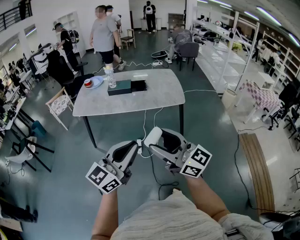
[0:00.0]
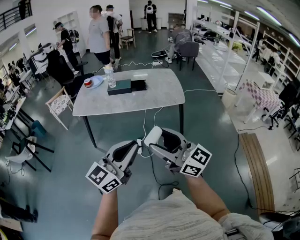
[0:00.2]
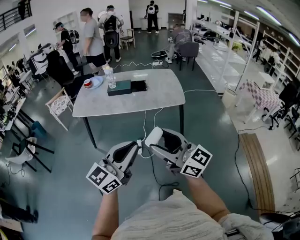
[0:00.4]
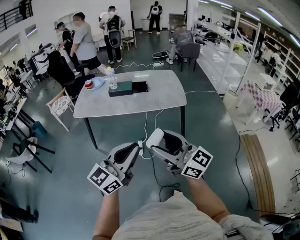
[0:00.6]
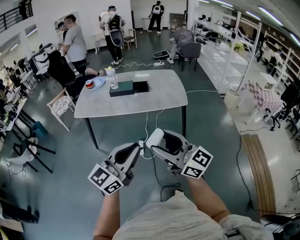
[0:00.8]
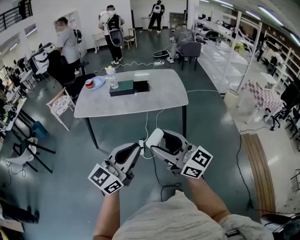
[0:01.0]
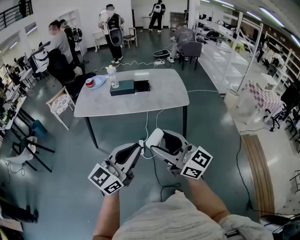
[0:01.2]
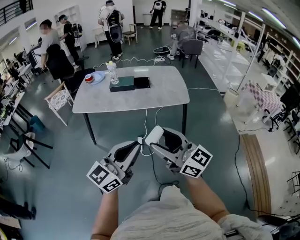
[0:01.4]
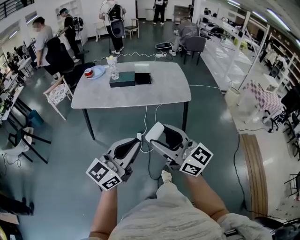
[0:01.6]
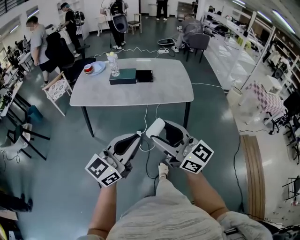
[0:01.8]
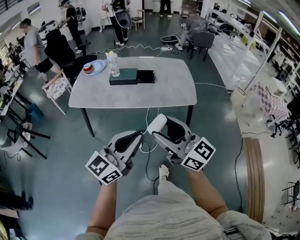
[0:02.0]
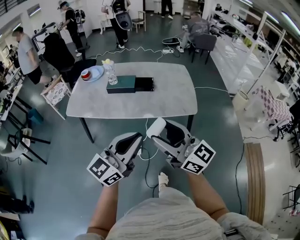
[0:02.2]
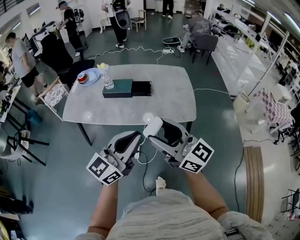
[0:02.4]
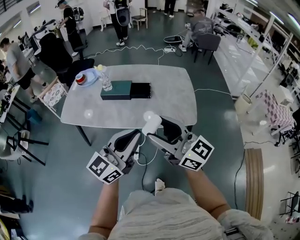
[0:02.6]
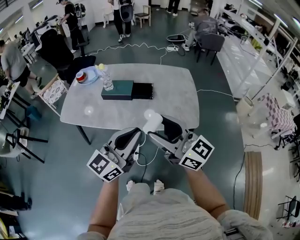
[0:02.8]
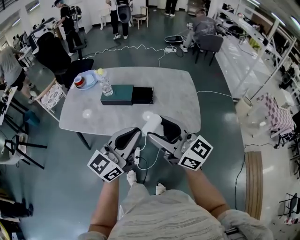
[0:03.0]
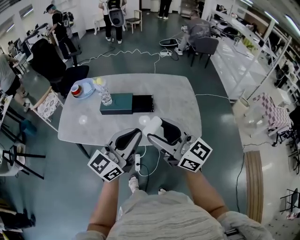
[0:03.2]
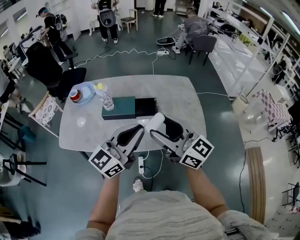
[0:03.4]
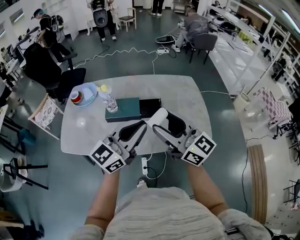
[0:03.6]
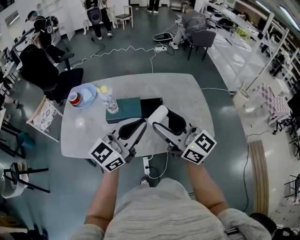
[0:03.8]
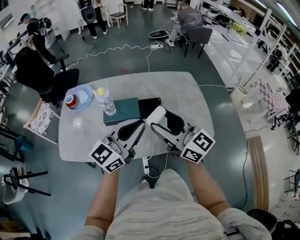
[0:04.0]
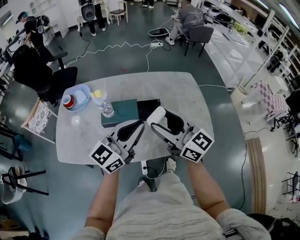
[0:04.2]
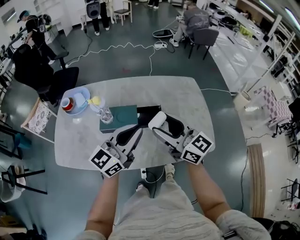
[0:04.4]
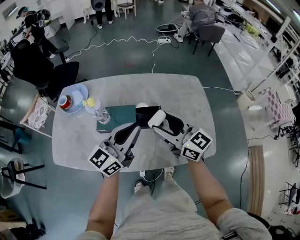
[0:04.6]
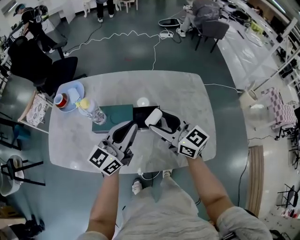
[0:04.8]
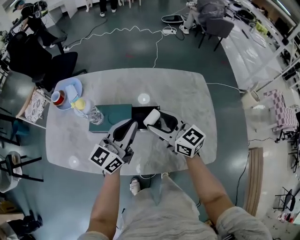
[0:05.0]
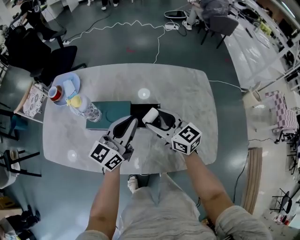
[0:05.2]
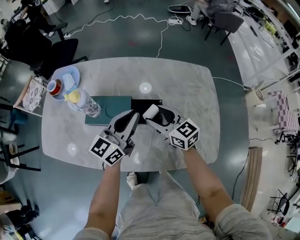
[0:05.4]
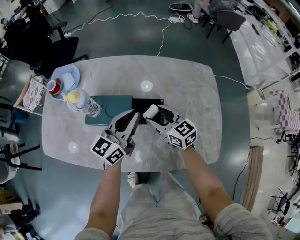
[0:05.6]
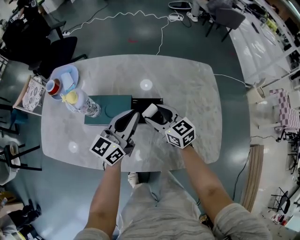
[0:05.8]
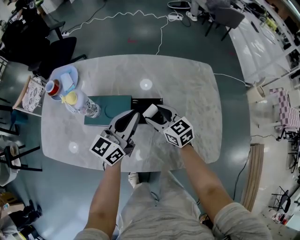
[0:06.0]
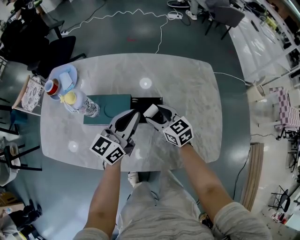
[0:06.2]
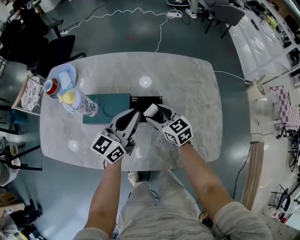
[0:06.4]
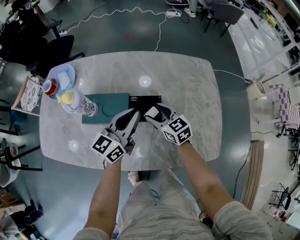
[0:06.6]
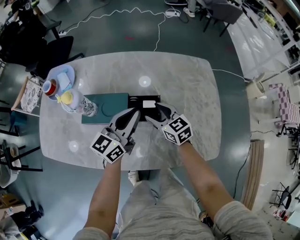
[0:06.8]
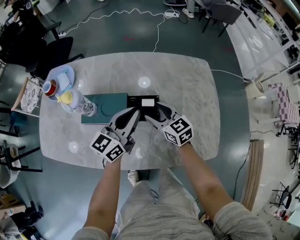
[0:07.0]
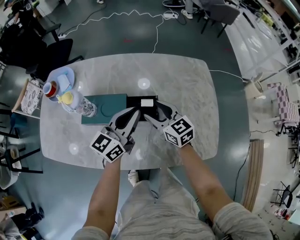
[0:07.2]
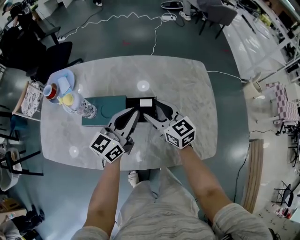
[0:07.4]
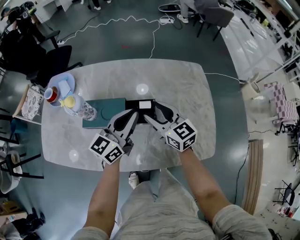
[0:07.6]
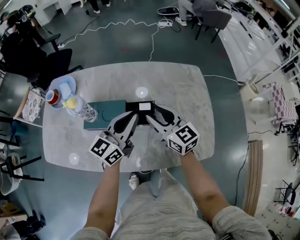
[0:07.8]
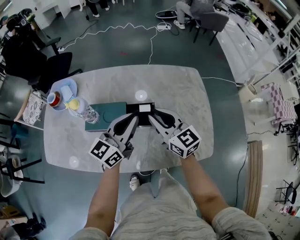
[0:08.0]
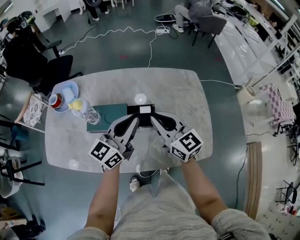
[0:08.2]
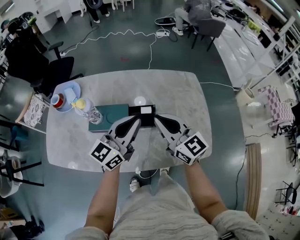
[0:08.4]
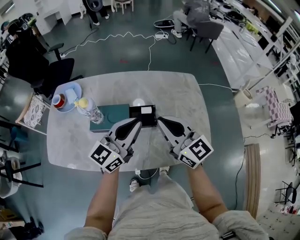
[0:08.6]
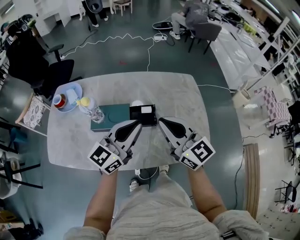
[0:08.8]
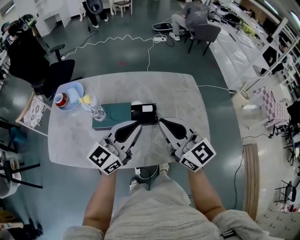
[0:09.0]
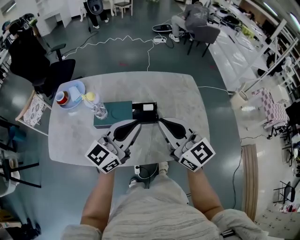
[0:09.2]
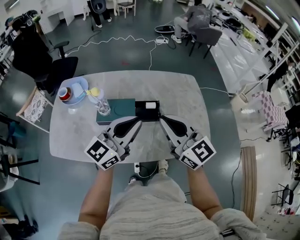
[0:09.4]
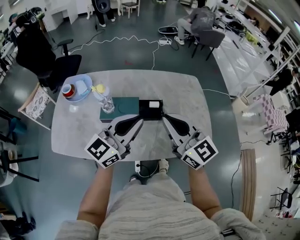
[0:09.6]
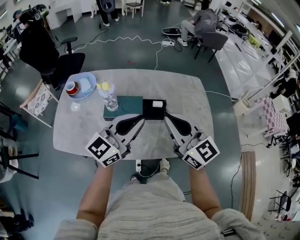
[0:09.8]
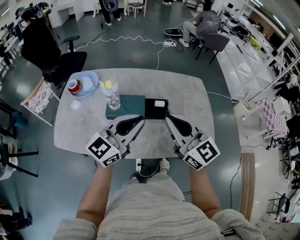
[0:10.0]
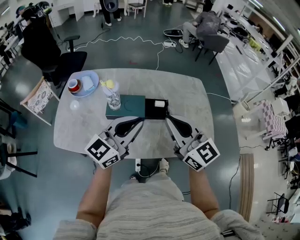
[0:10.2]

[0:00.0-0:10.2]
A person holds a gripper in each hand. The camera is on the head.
0:00.0 to 0:01.4: There are only small adjustments of the grippers.
0:01.4 to 0:03.0: Both grippers move forward, about 40 cm.
0:03.0 to 0:04.4: The grippers both shift forward by roughly 25 cm.
0:04.4 to 0:05.8: The right gripper moves downward and forward, about 30 cm, and rotates roughly 30 degrees. Meanwhile the left gripper is displaced forward and downward by roughly 20 cm.
0:05.8 to 0:07.2: The grippers make only small movements.
0:07.2 to 0:08.8: The right gripper shifts some 25 cm upward and backward, changes its angle by approximately 20 degrees, and closes up; the left gripper heads upward and backward, covering about 15 cm.
0:08.8 to 0:10.2: The right gripper moves backward and to the left, some 10 cm, while the left gripper moves to the left and backward, some 10 cm.

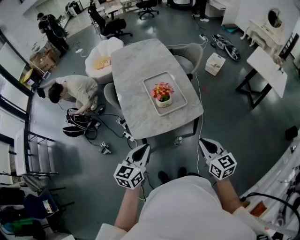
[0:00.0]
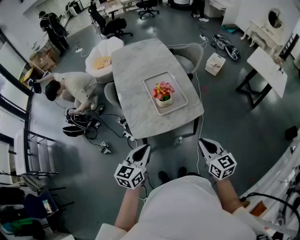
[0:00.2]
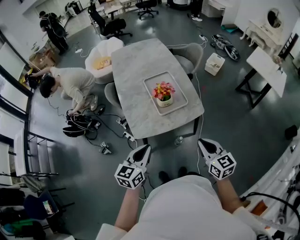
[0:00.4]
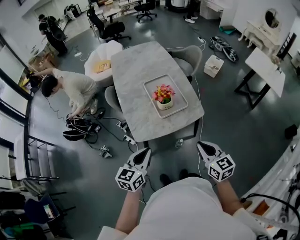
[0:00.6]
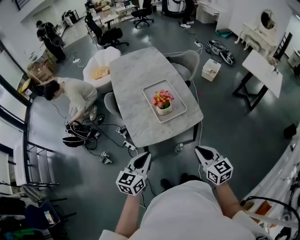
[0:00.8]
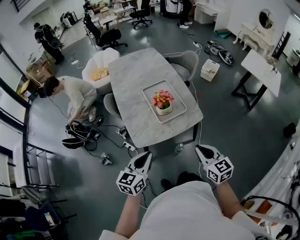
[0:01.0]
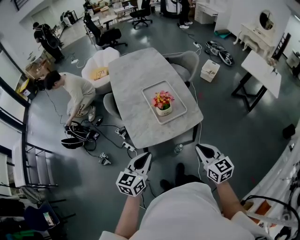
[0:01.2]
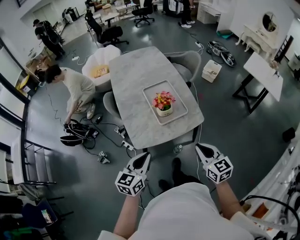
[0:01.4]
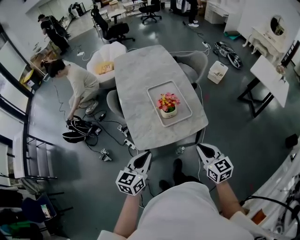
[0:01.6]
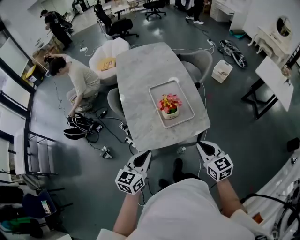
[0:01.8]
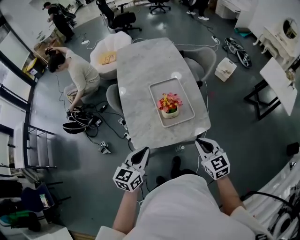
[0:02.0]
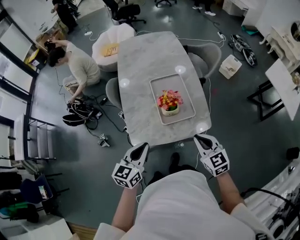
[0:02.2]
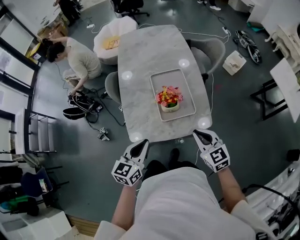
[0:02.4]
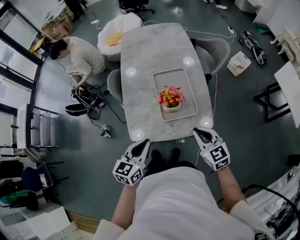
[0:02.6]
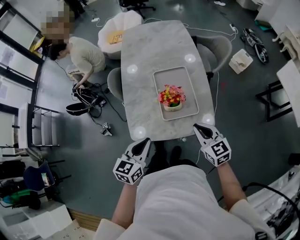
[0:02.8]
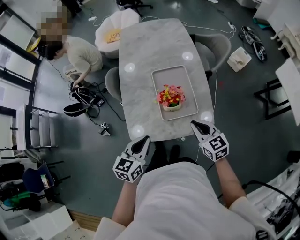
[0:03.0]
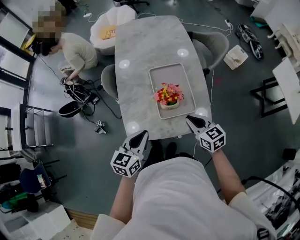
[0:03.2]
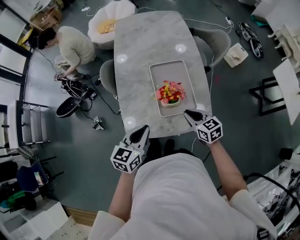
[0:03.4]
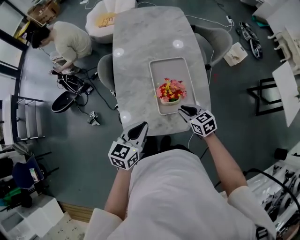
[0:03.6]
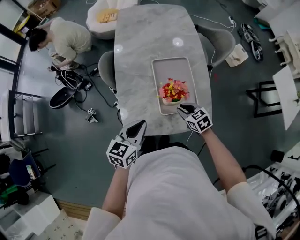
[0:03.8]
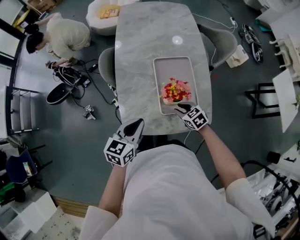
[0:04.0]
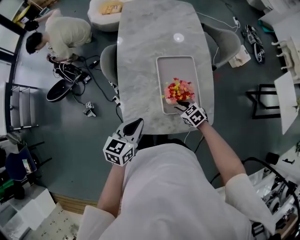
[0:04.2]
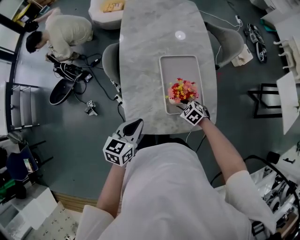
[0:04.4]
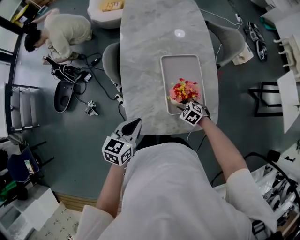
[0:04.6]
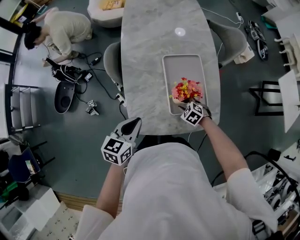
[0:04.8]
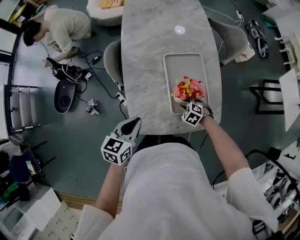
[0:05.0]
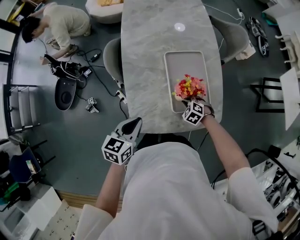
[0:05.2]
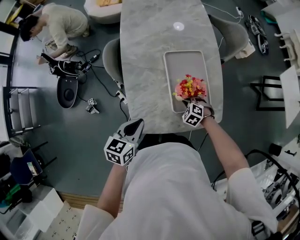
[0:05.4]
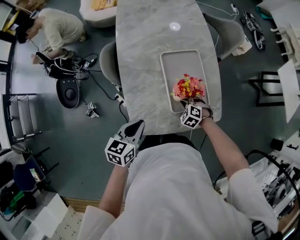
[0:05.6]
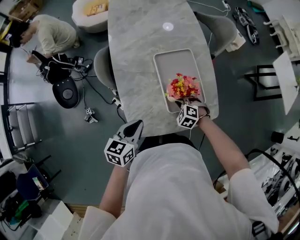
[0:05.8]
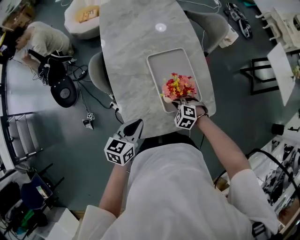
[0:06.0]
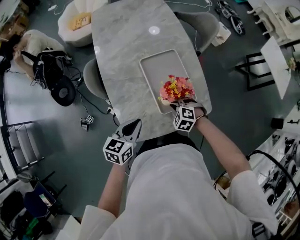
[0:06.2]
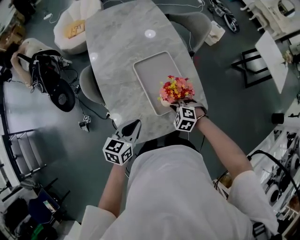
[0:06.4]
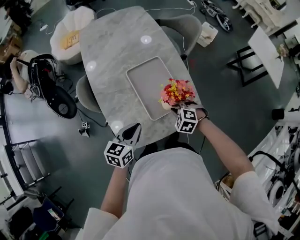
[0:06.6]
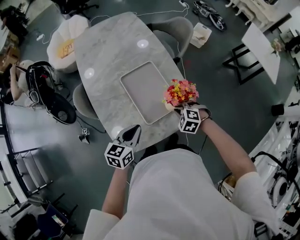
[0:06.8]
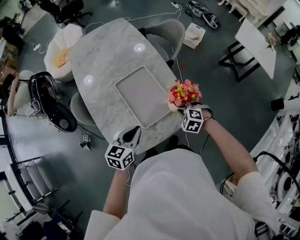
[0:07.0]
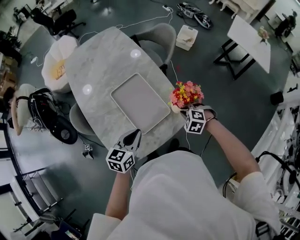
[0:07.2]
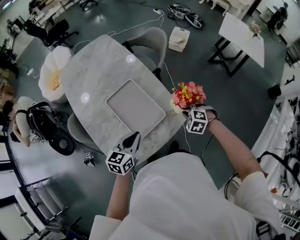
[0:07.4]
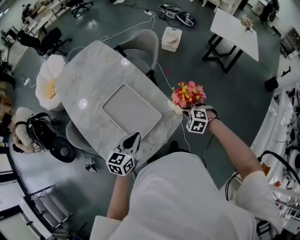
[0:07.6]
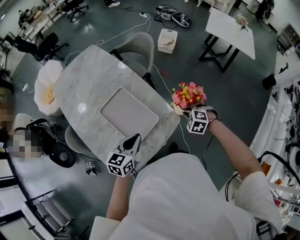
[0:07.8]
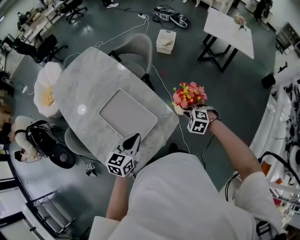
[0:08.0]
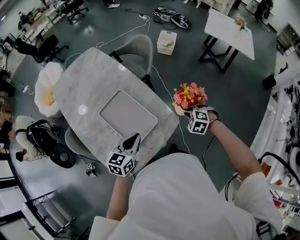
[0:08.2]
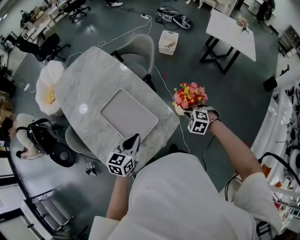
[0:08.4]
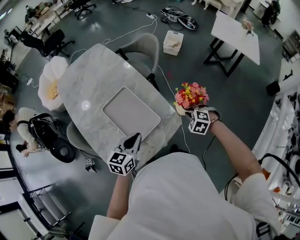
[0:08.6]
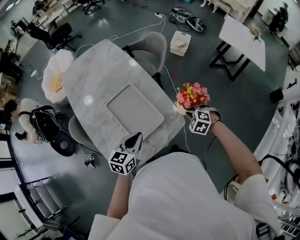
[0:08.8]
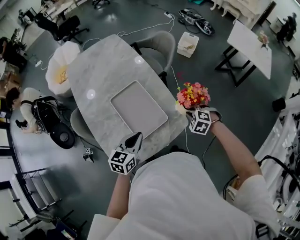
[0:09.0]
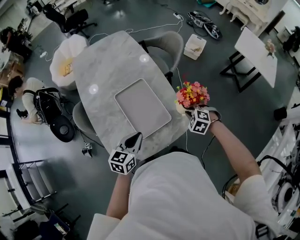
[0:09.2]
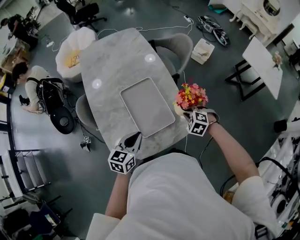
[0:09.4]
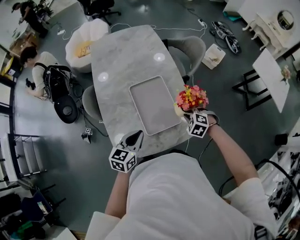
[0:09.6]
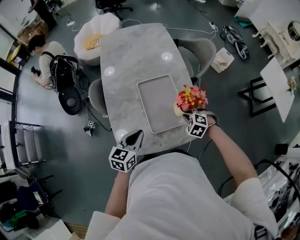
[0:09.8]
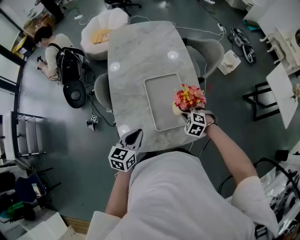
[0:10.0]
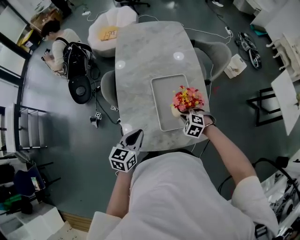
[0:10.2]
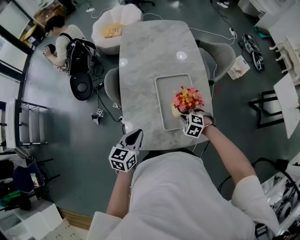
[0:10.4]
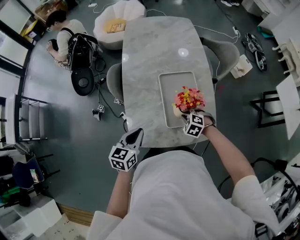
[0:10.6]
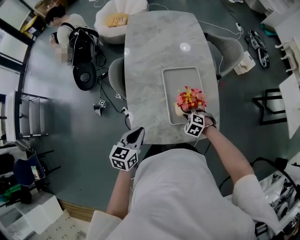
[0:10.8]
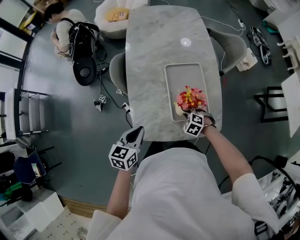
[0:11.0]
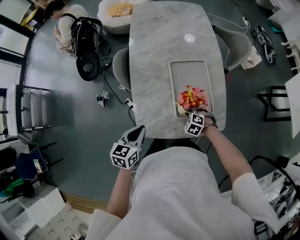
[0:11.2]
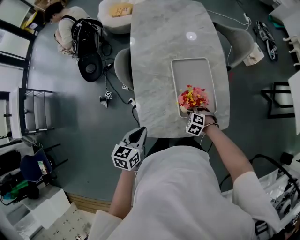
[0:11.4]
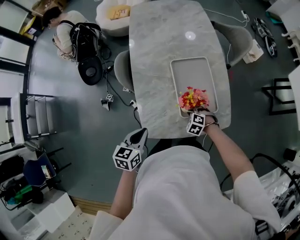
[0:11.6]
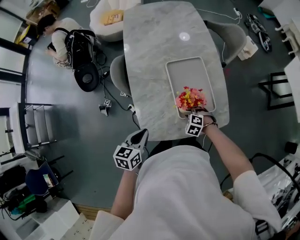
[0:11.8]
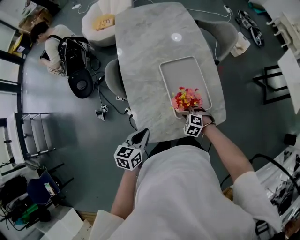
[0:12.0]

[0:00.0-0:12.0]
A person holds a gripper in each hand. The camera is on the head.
0:00.0 to 0:01.6: The right gripper shifts approximately 5 cm forward.
0:01.6 to 0:03.0: The left gripper goes roughly 15 cm forward and to the right. Meanwhile the right gripper travels forward by approximately 20 cm.
0:03.0 to 0:04.4: The left gripper is displaced forward, to the left and downward by some 15 cm; the right gripper moves downward and forward, about 25 cm, tilts its fingers some 40 degrees downward, and opens.
0:04.4 to 0:06.0: There are only small adjustments of the grippers.
0:06.0 to 0:07.6: The left gripper changes place by approximately 25 cm, and rotates about 20 degrees. The right gripper shifts by some 35 cm, and rotates some 30 degrees.
0:07.6 to 0:09.0: The grippers move only a little.
0:09.0 to 0:10.4: The right gripper moves about 25 cm, and turns by approximately 30 degrees. Meanwhile the left gripper ends up roughly 20 cm from where it was, and rotates approximately 30 degrees.
0:10.4 to 0:12.0: The left gripper moves downward, about 5 cm; the right gripper travels downward by roughly 10 cm.

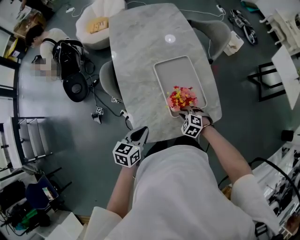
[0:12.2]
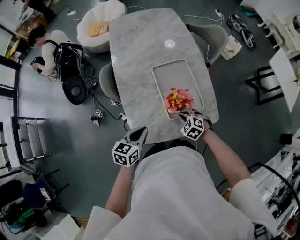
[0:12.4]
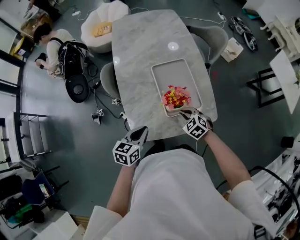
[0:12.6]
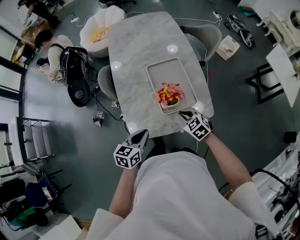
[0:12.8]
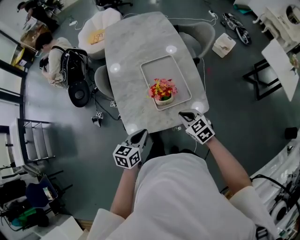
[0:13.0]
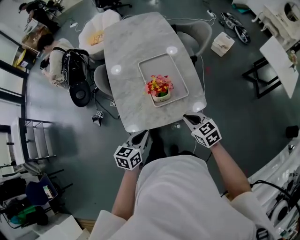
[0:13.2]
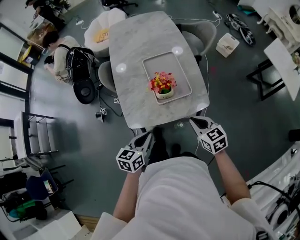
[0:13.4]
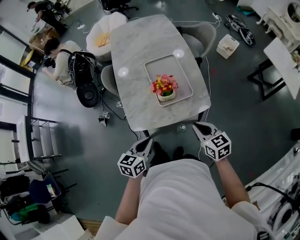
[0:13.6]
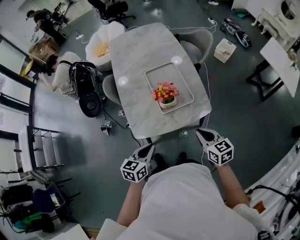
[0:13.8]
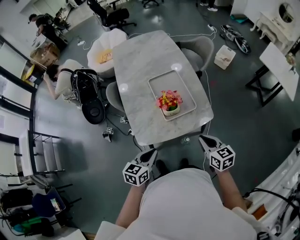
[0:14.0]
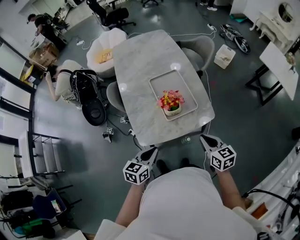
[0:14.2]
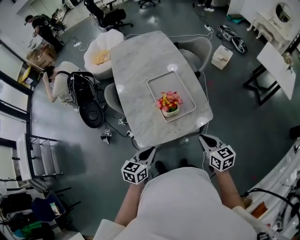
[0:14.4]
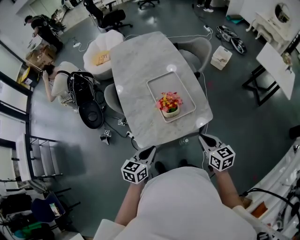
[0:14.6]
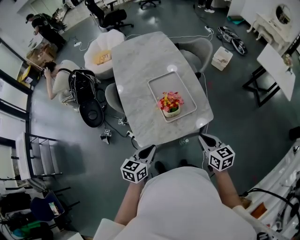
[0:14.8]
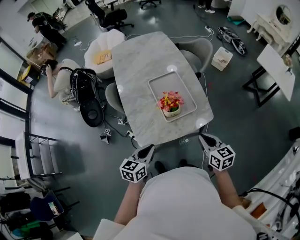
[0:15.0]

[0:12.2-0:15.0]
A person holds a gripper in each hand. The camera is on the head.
0:12.2 to 0:13.6: The left gripper is displaced backward and to the right by about 20 cm; the right gripper moves upward, backward and to the right, approximately 30 cm, and angles its fingers upward, by some 30 degrees.
0:13.6 to 0:15.0: The left gripper heads to the left, covering some 5 cm.
